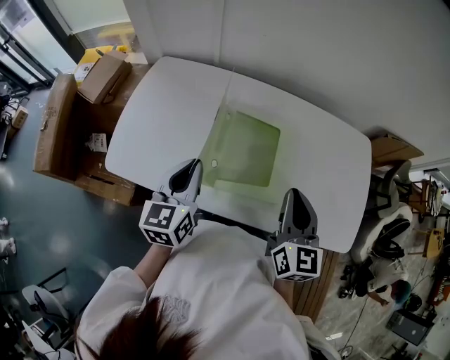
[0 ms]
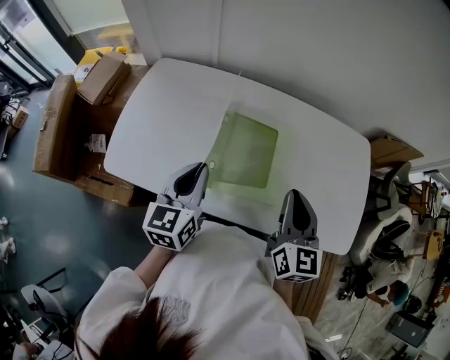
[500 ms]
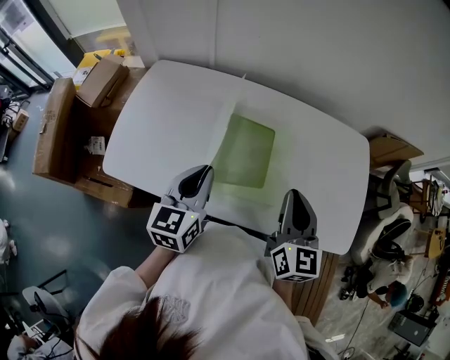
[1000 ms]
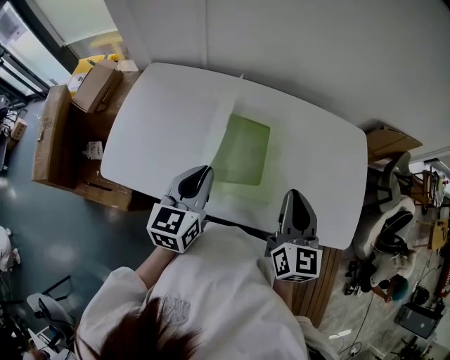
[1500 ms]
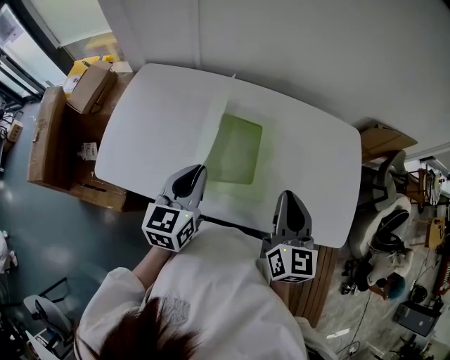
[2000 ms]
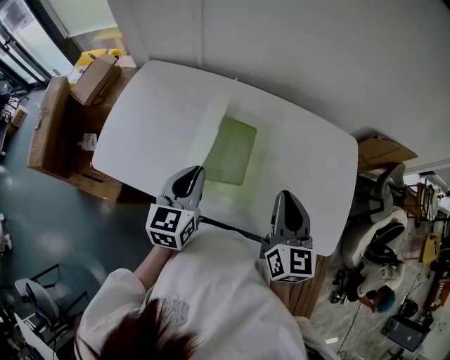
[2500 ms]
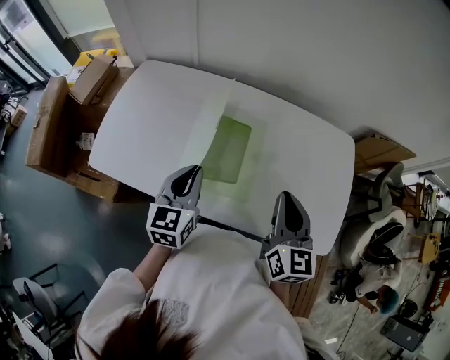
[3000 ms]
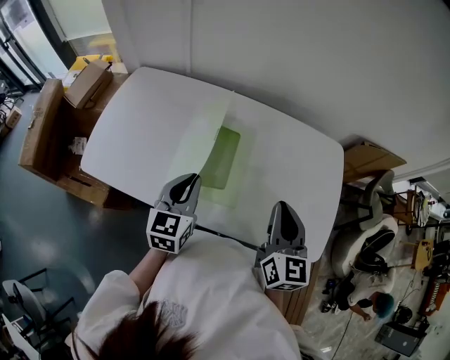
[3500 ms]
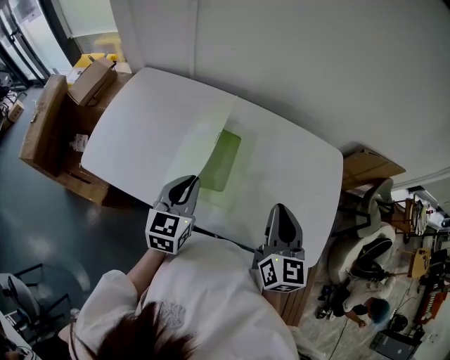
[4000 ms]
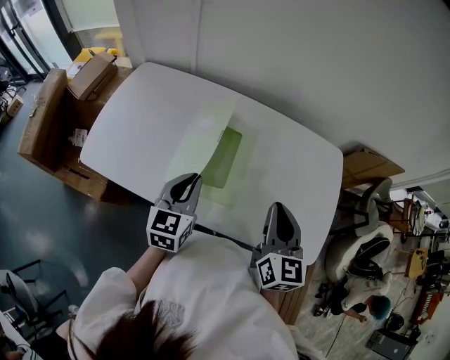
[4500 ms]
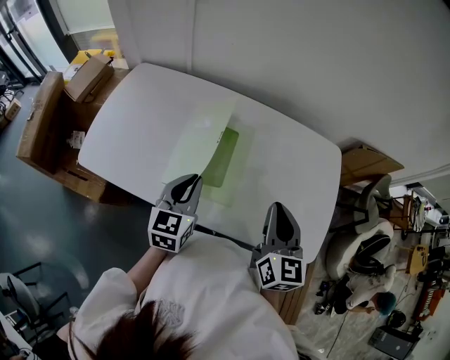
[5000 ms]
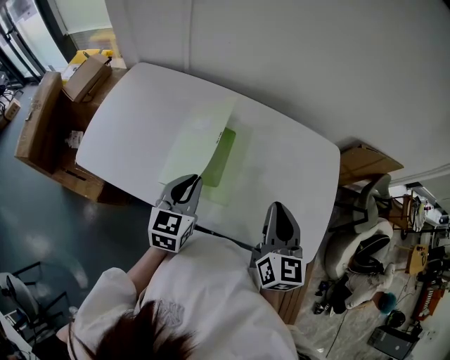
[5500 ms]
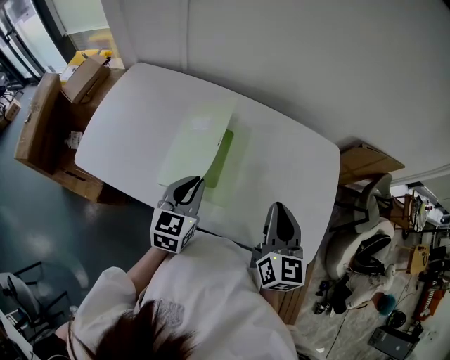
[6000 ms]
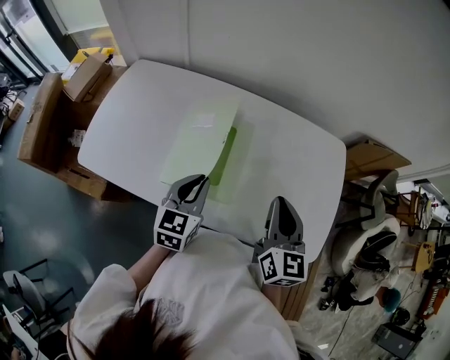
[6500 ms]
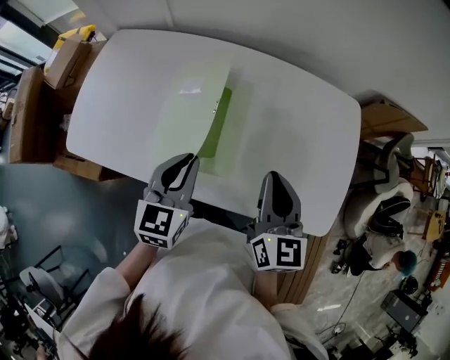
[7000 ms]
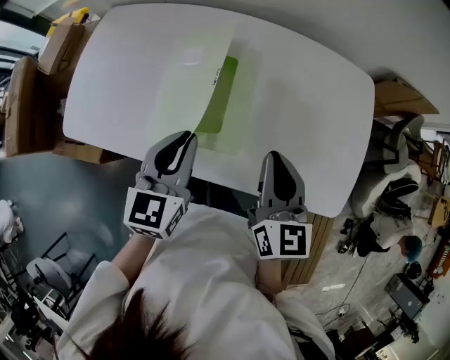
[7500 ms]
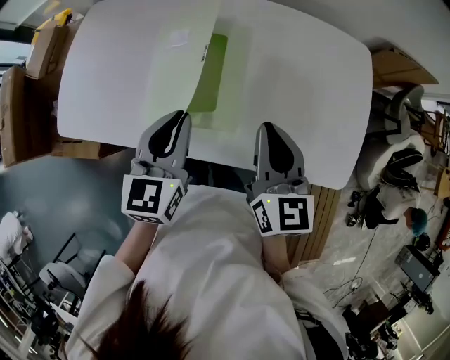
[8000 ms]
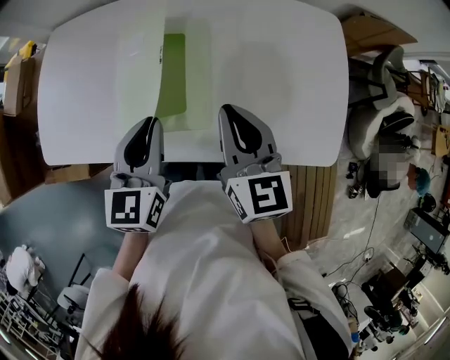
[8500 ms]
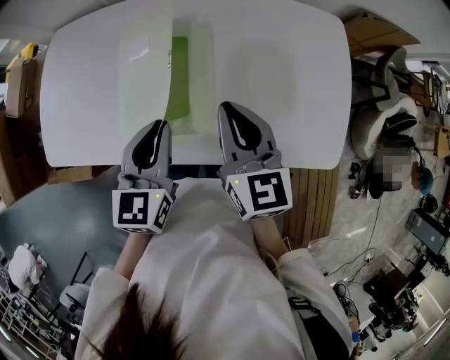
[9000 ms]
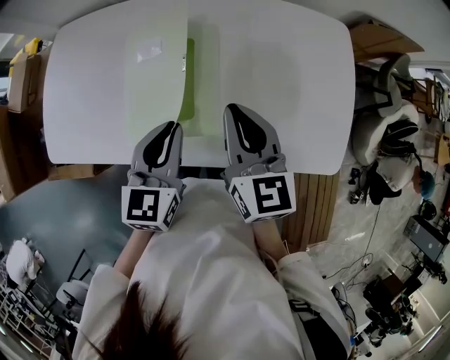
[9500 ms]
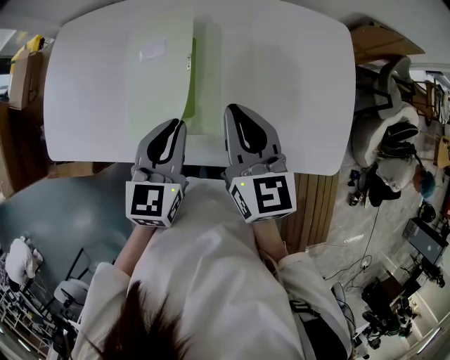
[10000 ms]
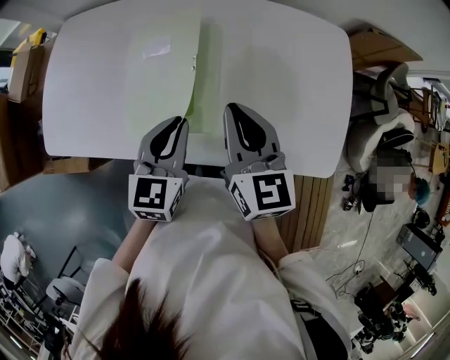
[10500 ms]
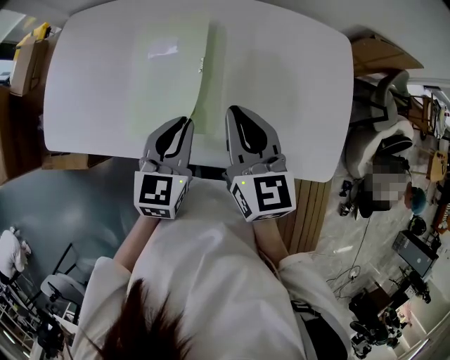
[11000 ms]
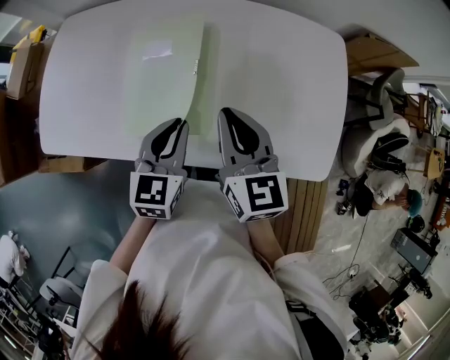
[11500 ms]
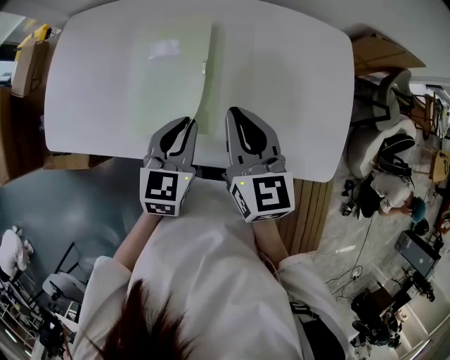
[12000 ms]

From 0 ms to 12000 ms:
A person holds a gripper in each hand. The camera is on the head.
From 0 ms to 2000 ms: The left gripper shifts approximately 5 cm to the right.
From 2000 ms to 4000 ms: The grippers both shift to the right by about 10 cm.
From 4000 ms to 6000 ms: The grippers make only small movements.
From 6000 ms to 8000 ms: The right gripper travels downward and to the left by about 10 cm.
From 8000 ms to 10000 ms: The grippers move only a little.
From 10000 ms to 12000 ms: The grippers make only small movements.

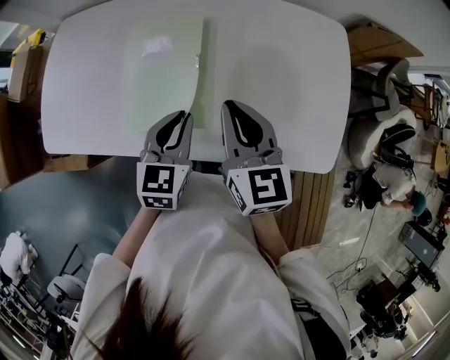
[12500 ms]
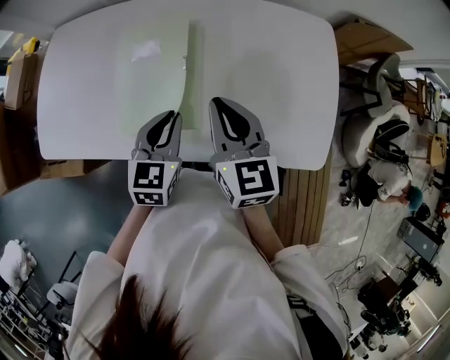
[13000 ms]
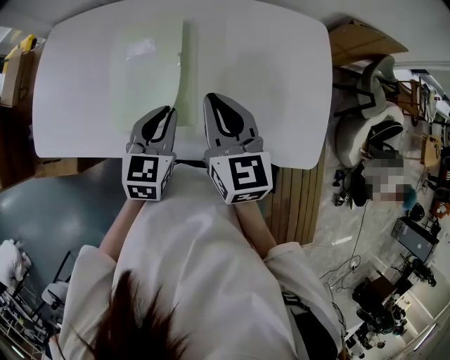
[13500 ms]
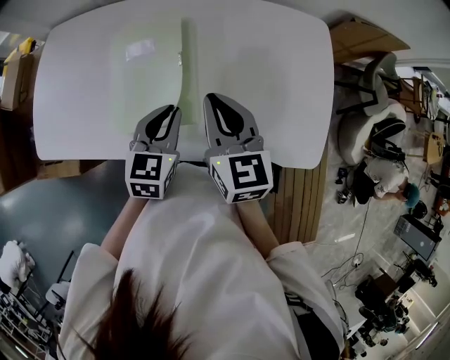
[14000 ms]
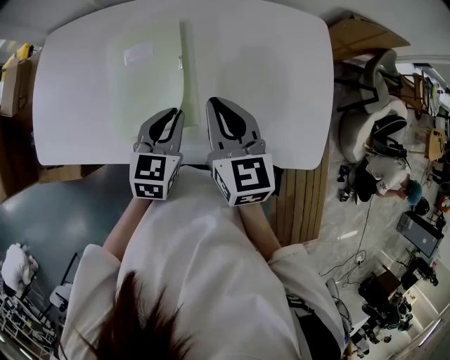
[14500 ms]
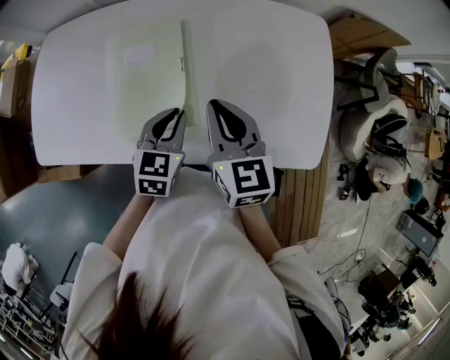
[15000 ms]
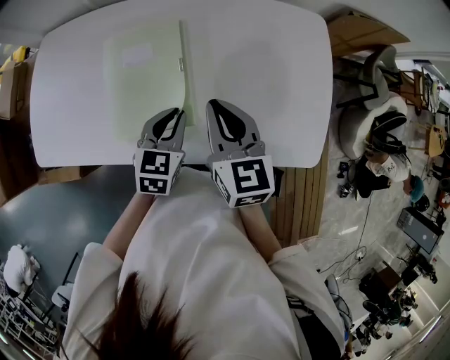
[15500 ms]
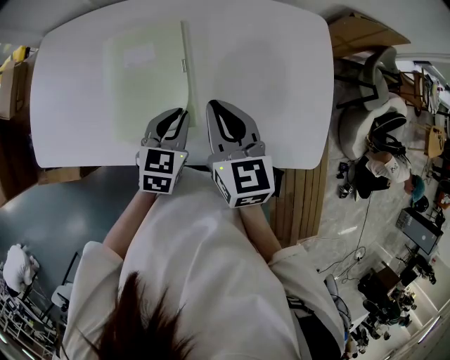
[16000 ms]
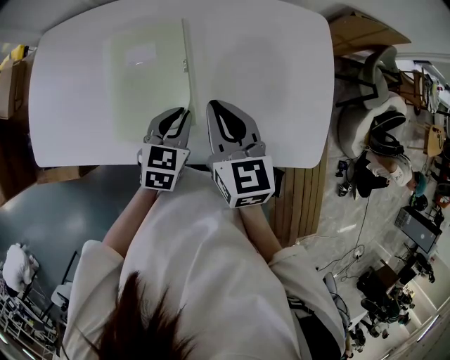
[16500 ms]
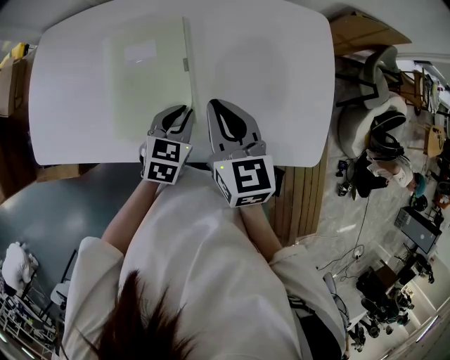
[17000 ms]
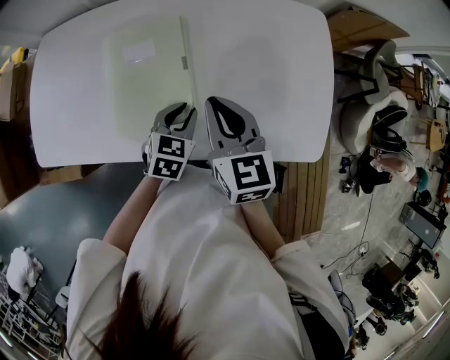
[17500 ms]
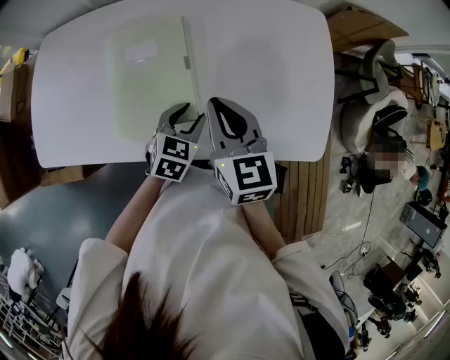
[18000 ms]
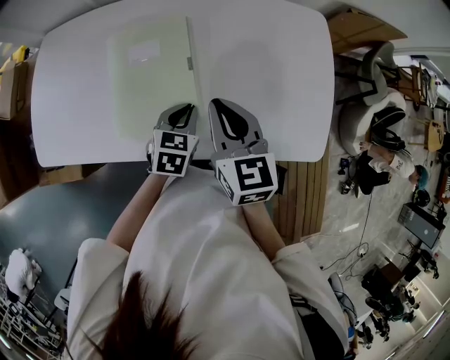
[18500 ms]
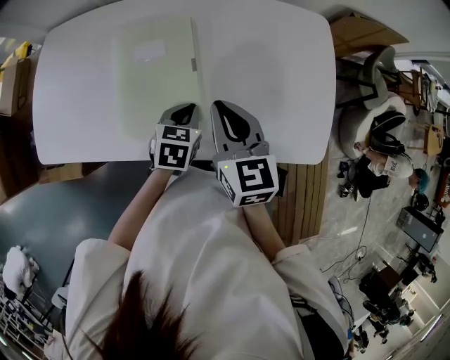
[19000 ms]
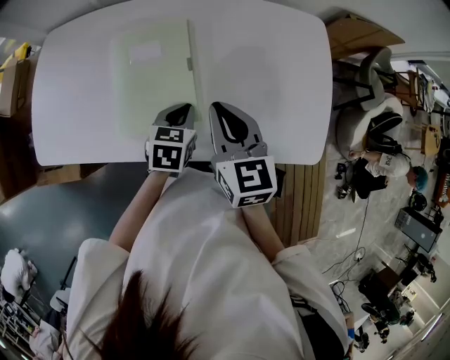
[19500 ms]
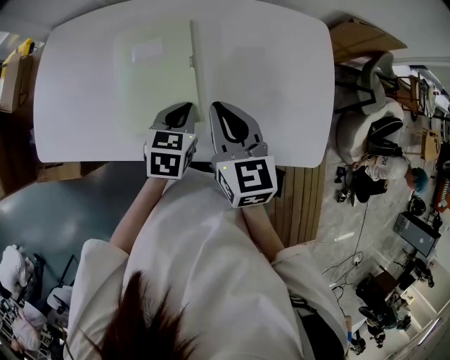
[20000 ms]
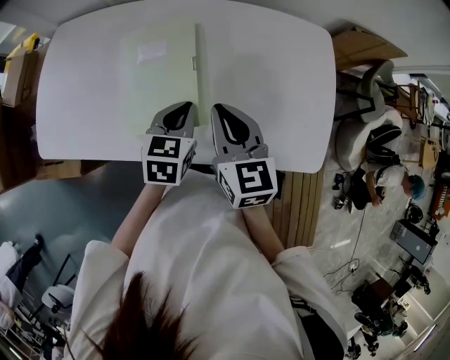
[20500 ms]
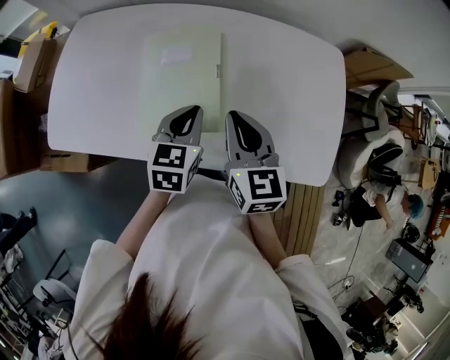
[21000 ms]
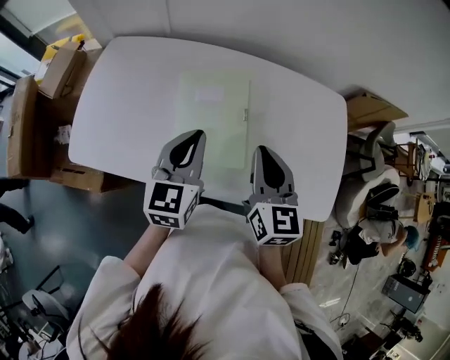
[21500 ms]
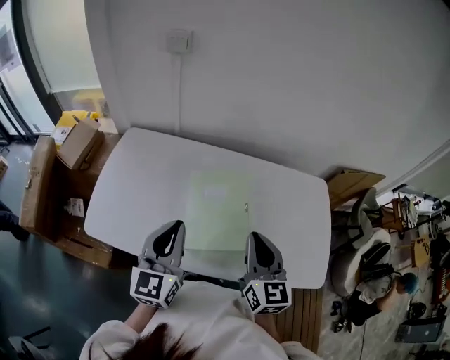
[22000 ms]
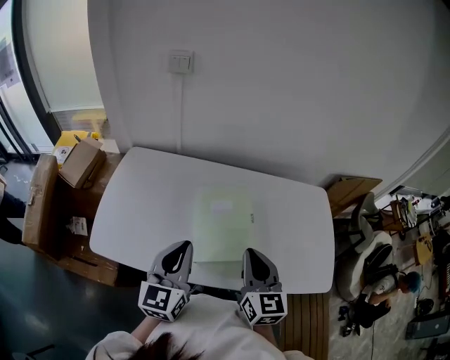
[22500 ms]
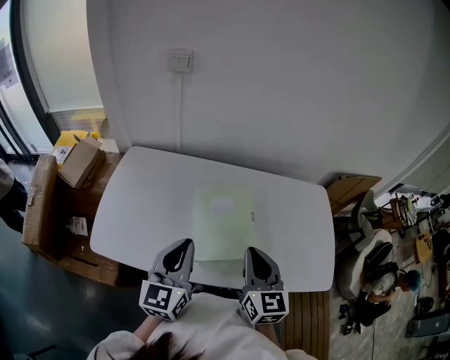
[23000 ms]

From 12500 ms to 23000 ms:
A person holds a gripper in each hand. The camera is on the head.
From 12500 ms to 14500 ms: There are only small adjustments of the grippers.
From 14500 ms to 16500 ms: There are only small adjustments of the grippers.
From 16500 ms to 19000 ms: The left gripper opens and closes again.
From 19000 ms to 21000 ms: The left gripper travels upward by some 10 cm.
From 21000 ms to 23000 ms: The left gripper heads to the left and upward, covering approximately 25 cm, and changes its angle by roughly 30 degrees; the right gripper heads to the left and upward, covering some 15 cm.

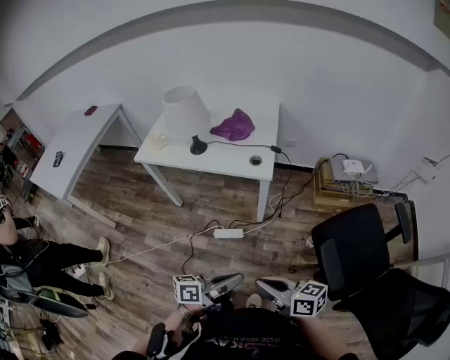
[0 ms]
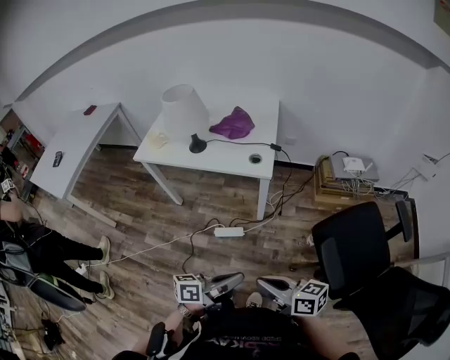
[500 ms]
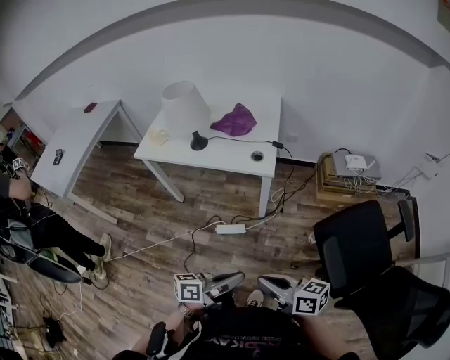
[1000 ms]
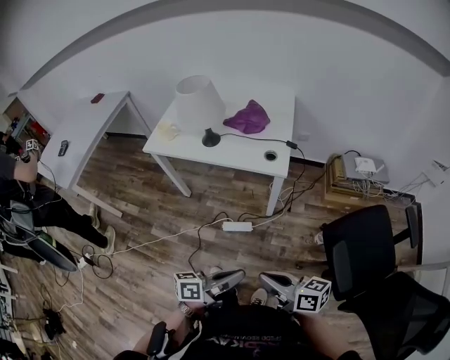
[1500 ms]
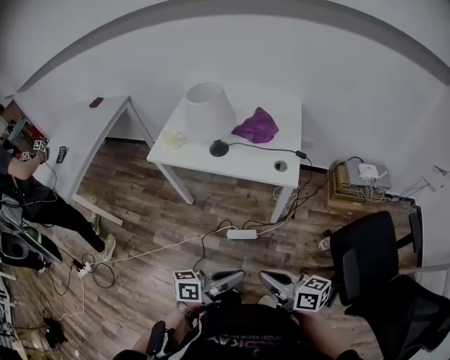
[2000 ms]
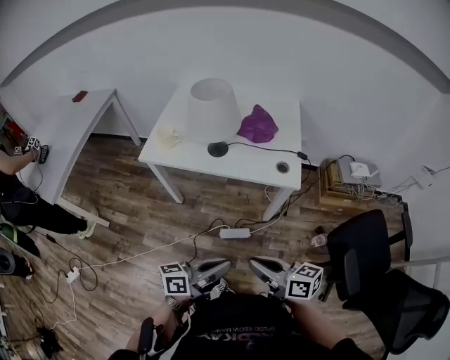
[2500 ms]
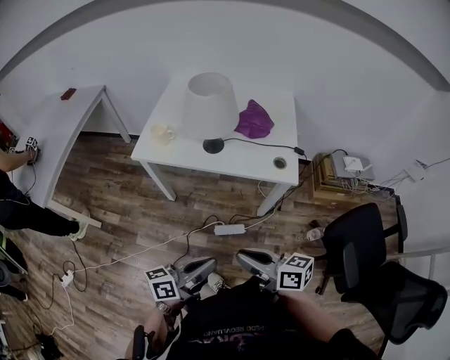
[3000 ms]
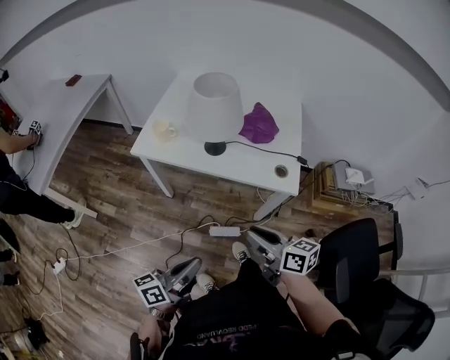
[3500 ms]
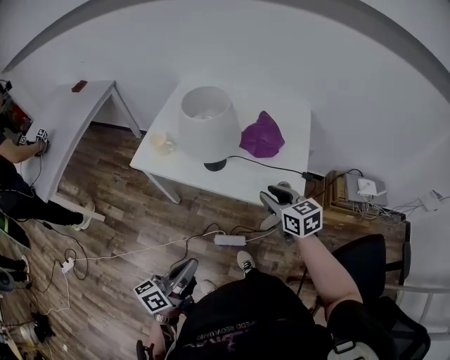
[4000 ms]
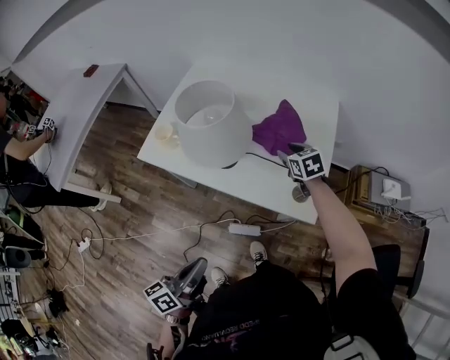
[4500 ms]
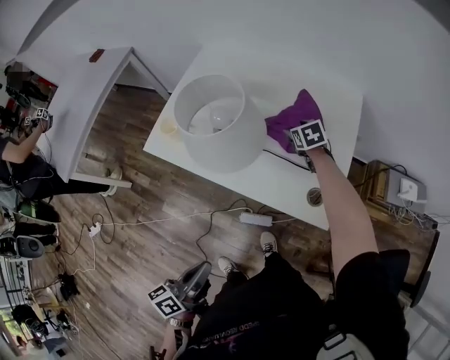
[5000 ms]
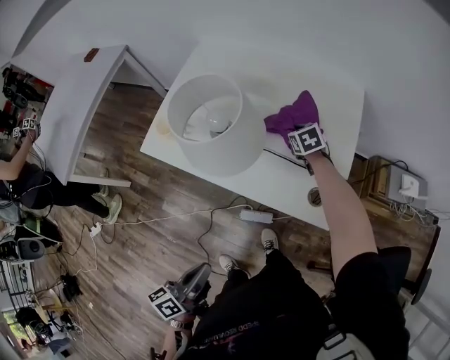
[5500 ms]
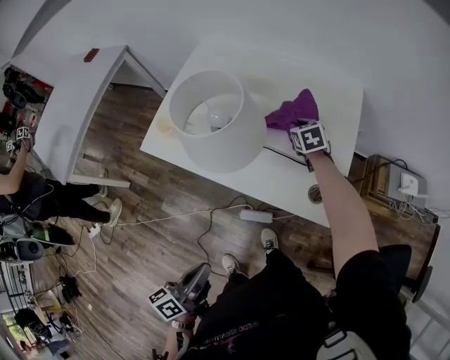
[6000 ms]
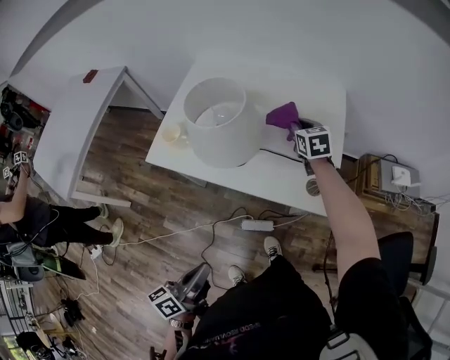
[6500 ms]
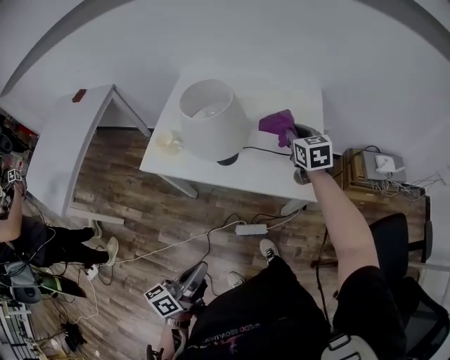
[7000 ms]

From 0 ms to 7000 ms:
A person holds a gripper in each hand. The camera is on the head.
From 0 ms to 2000 ms: Both grippers travel together to the left and forward, some 10 cm.
From 2000 ms to 3500 ms: The right gripper moves forward, approximately 20 cm, while the left gripper shifts about 20 cm to the left and forward.
From 3500 ms to 5000 ms: The right gripper is displaced forward by some 50 cm, angles its fingers downward, by about 40 degrees, and opens up, while the left gripper is displaced forward by about 10 cm, and rotates about 30 degrees.
From 5000 ms to 7000 ms: The right gripper travels upward and backward by about 20 cm, swivels about 30 degrees, and closes its fingers. The left gripper moves roughly 5 cm.
